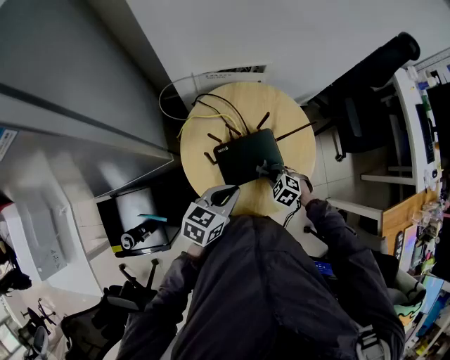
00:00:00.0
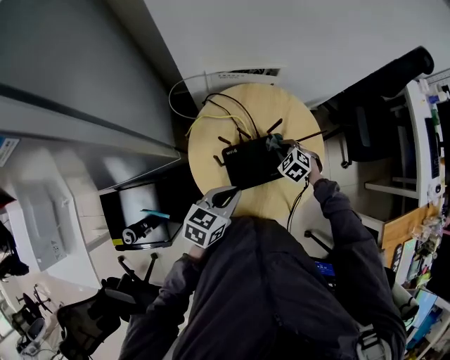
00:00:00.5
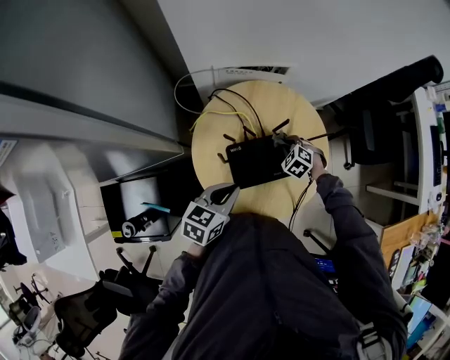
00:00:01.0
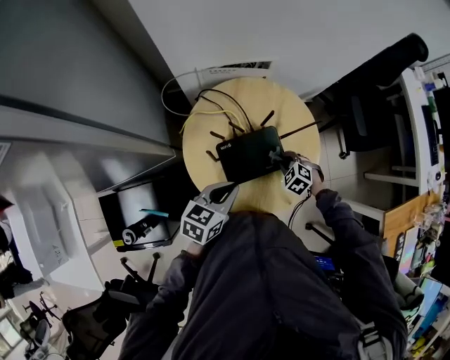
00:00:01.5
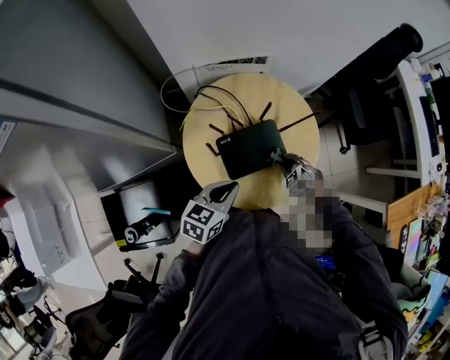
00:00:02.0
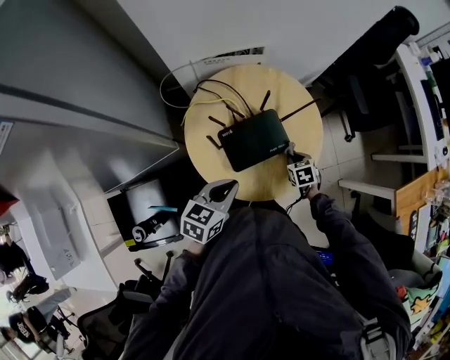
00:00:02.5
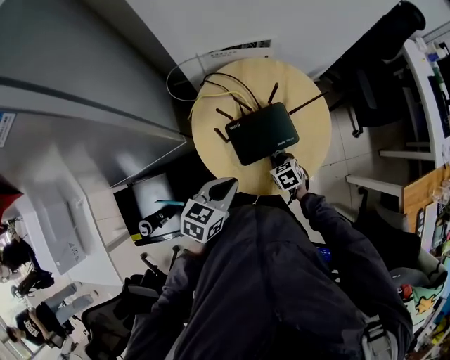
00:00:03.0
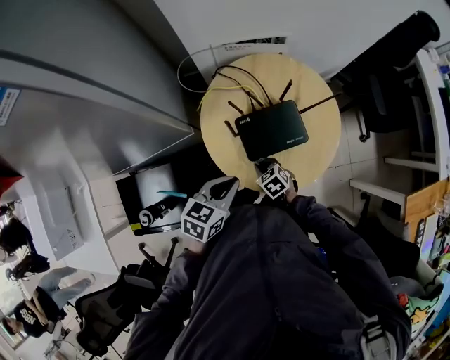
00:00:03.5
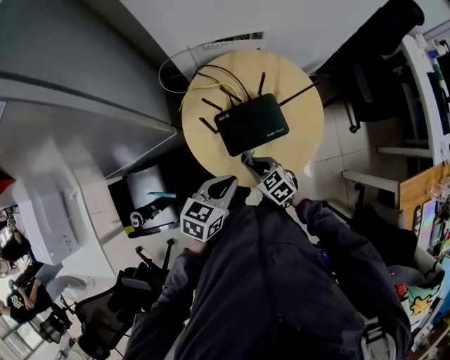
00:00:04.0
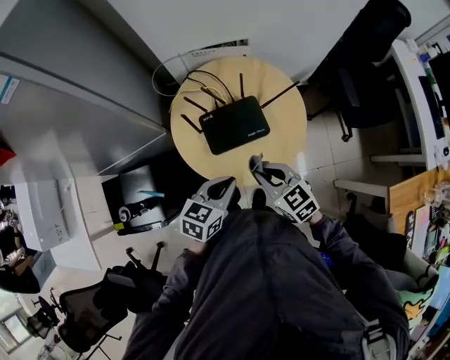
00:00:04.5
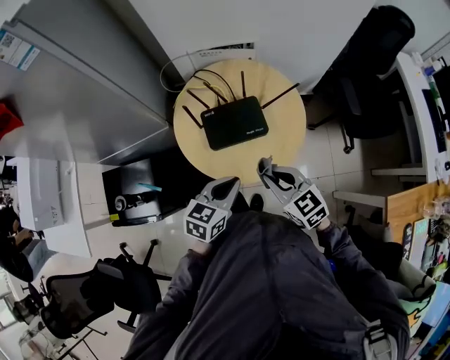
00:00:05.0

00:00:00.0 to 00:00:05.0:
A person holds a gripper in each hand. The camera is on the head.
00:00:00.0 to 00:00:02.5: The right gripper travels to the right by roughly 10 cm, moves roughly 15 cm forward and comes back, and twists approximately 50 degrees clockwise, seen from behind.
00:00:02.5 to 00:00:05.0: The left gripper ends up about 15 cm from where it was, while the right gripper shifts approximately 25 cm upward, and angles its fingers upward, by approximately 40 degrees.

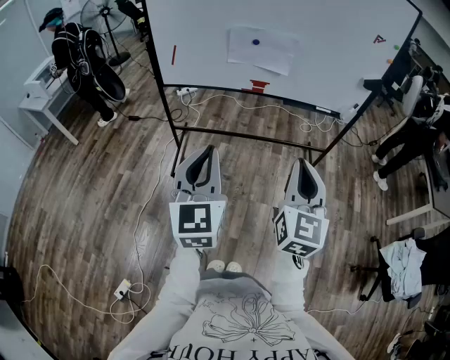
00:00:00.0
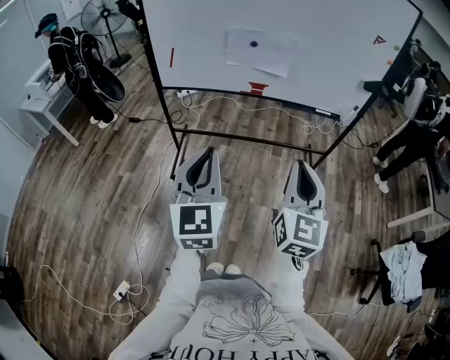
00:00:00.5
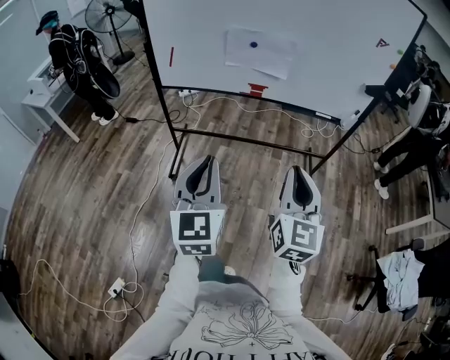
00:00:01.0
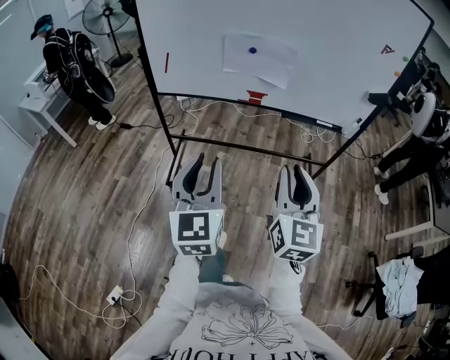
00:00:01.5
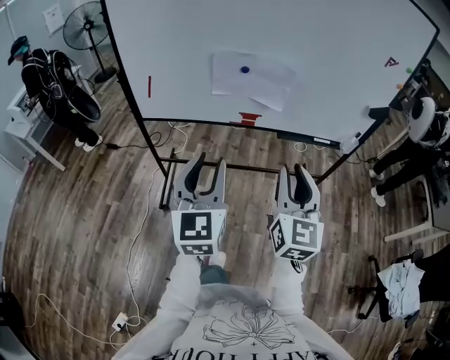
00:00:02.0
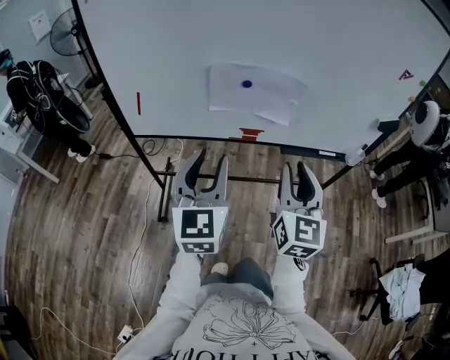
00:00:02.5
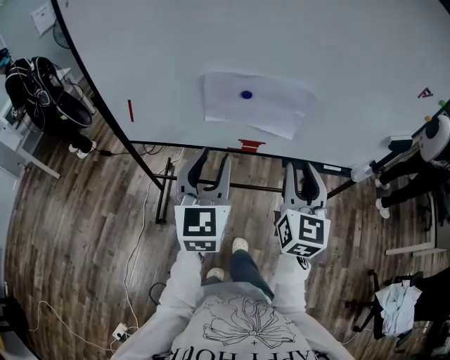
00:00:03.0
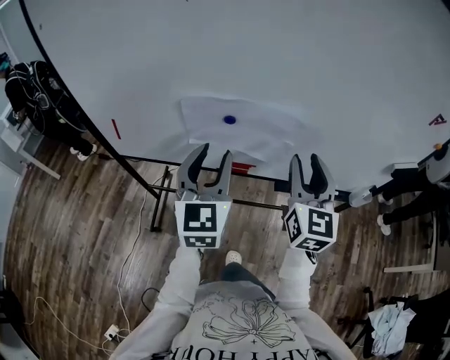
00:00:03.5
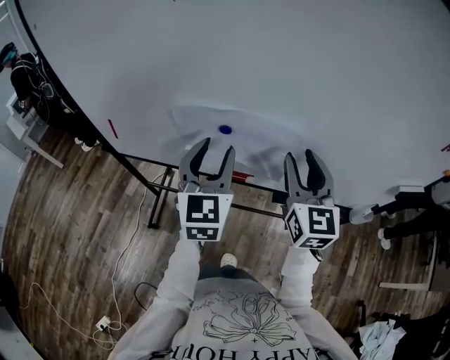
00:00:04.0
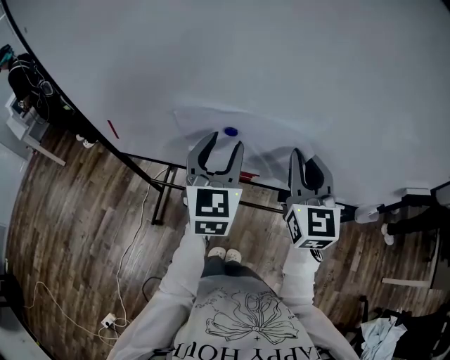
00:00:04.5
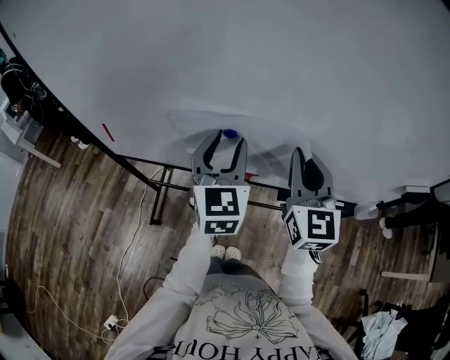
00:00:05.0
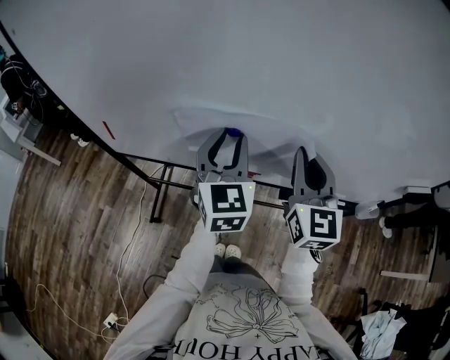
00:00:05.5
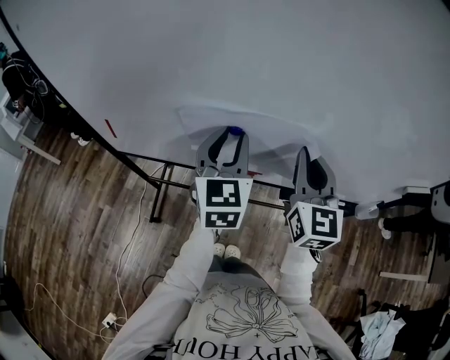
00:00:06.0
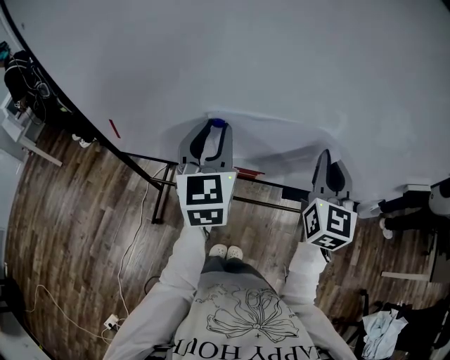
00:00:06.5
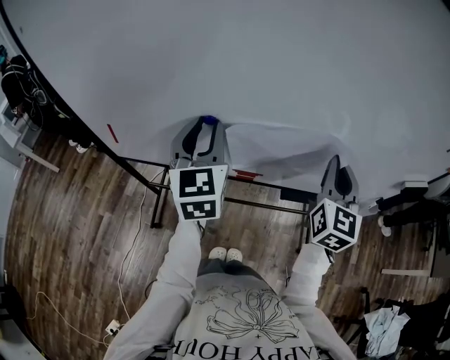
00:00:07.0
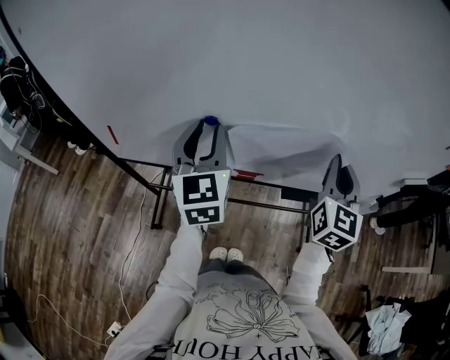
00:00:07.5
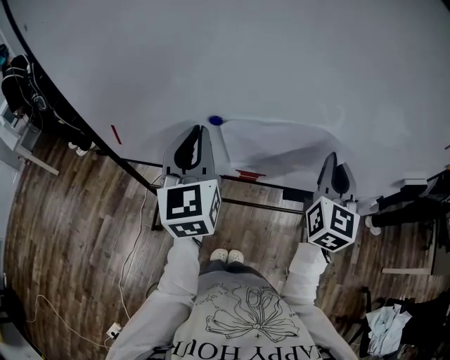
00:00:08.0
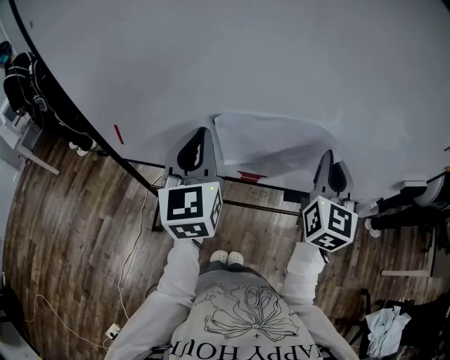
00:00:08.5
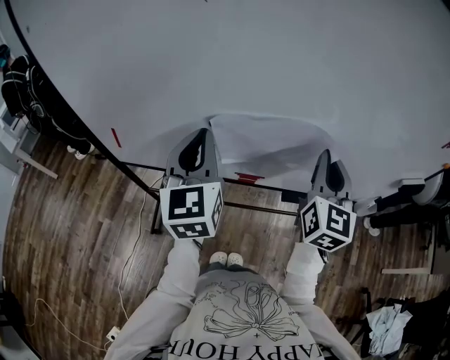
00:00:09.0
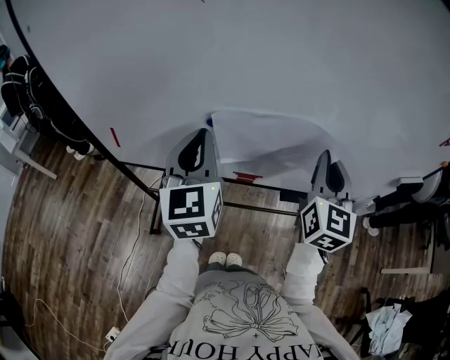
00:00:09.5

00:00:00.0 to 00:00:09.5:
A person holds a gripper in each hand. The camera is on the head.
00:00:00.0 to 00:00:02.0: The grippers both shift forward by approximately 25 cm. The left gripper opens.
00:00:02.0 to 00:00:04.0: Both grippers move forward, about 40 cm.
00:00:04.0 to 00:00:05.5: The right gripper closes up. Meanwhile the left gripper shifts by roughly 5 cm.
00:00:05.5 to 00:00:07.5: The right gripper is displaced to the right by about 10 cm; the left gripper is displaced to the left by some 5 cm.
00:00:07.5 to 00:00:09.5: The left gripper closes up. The right gripper moves approximately 5 cm.

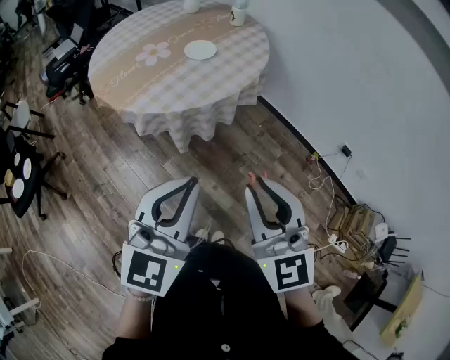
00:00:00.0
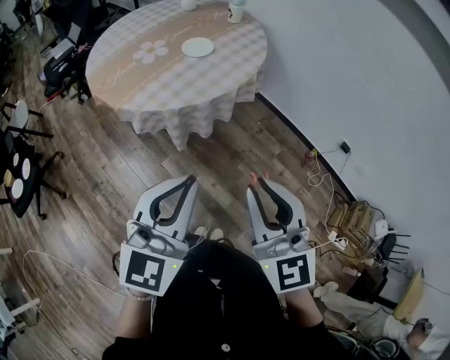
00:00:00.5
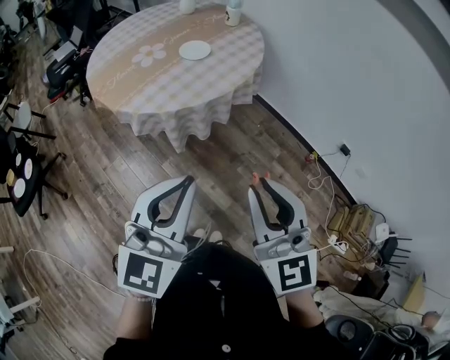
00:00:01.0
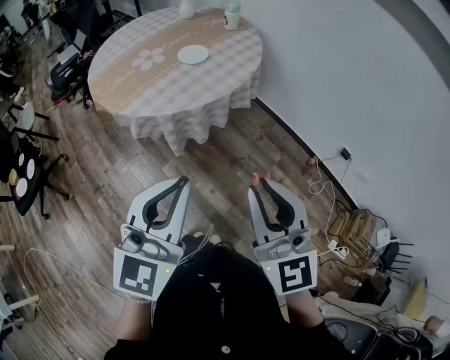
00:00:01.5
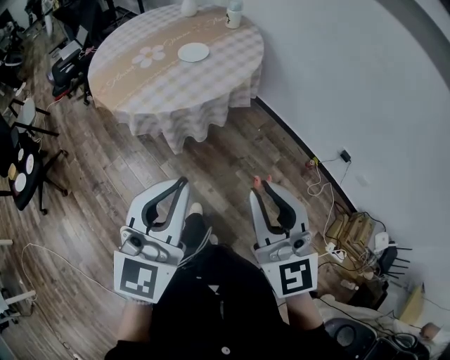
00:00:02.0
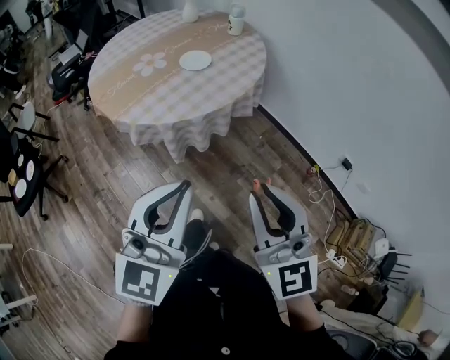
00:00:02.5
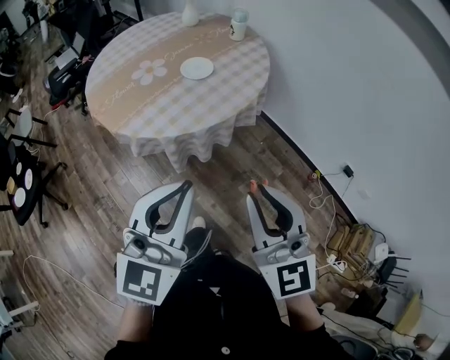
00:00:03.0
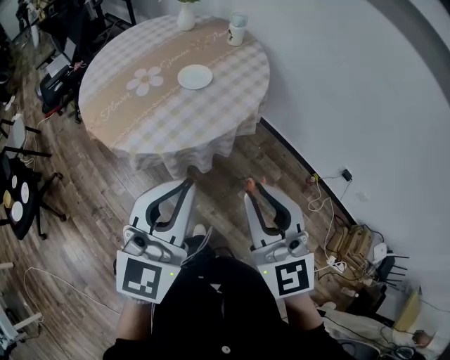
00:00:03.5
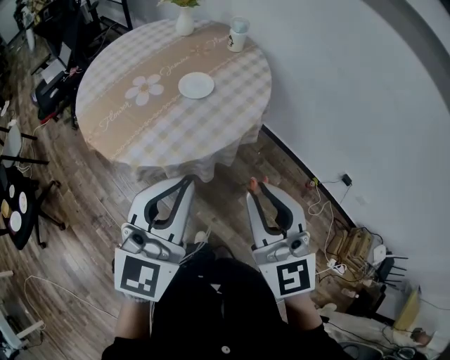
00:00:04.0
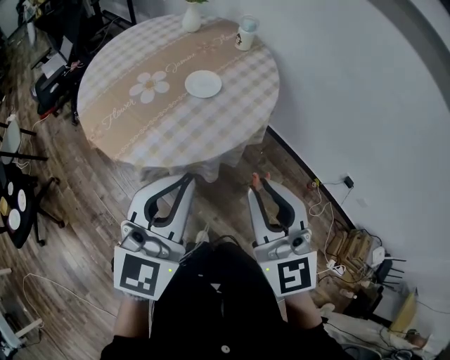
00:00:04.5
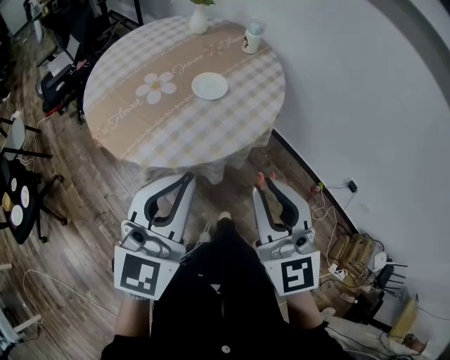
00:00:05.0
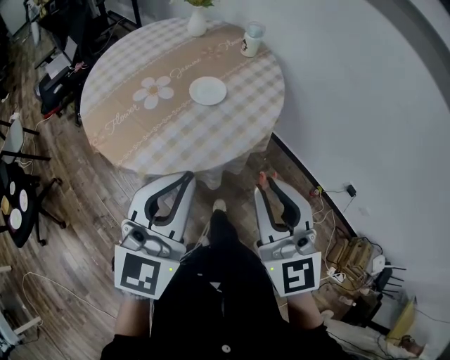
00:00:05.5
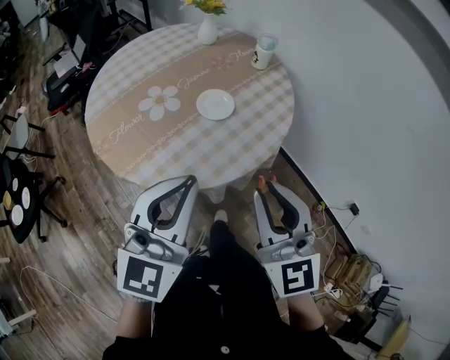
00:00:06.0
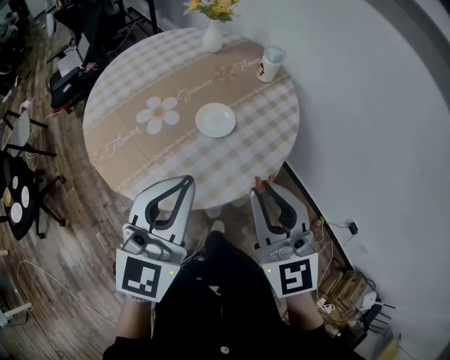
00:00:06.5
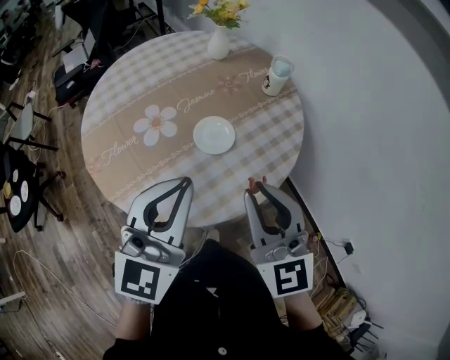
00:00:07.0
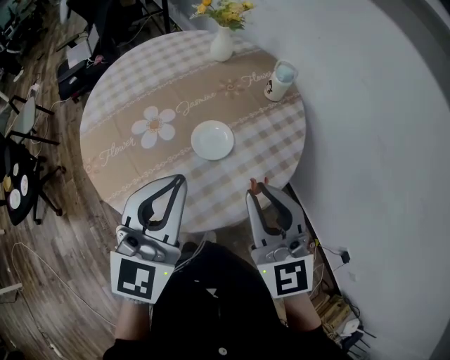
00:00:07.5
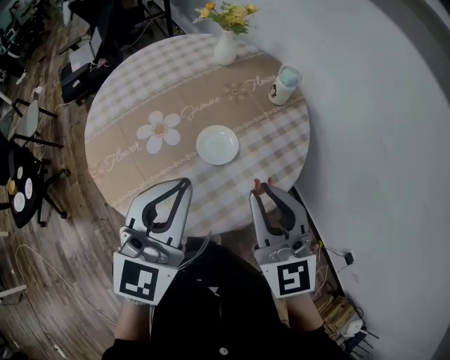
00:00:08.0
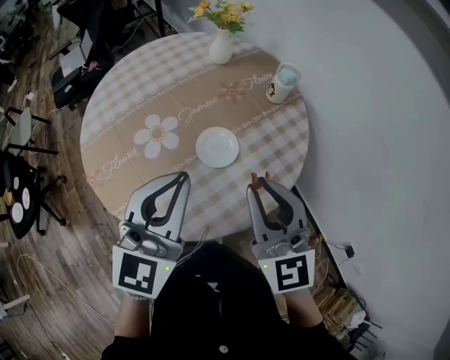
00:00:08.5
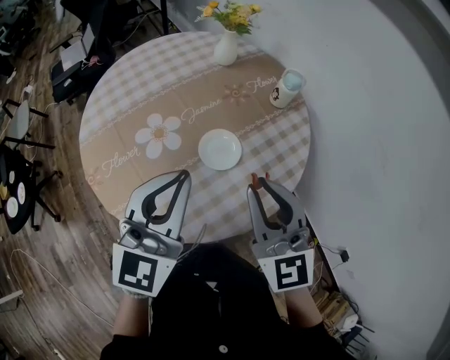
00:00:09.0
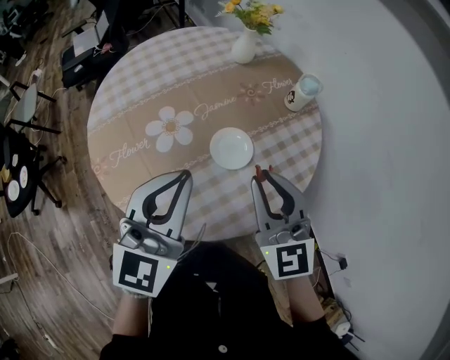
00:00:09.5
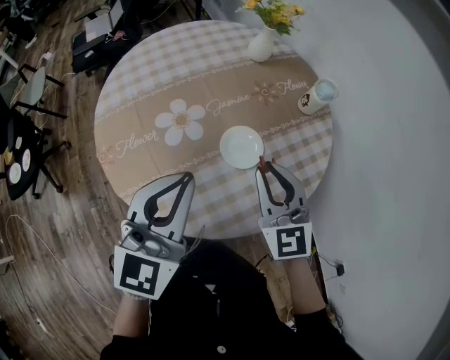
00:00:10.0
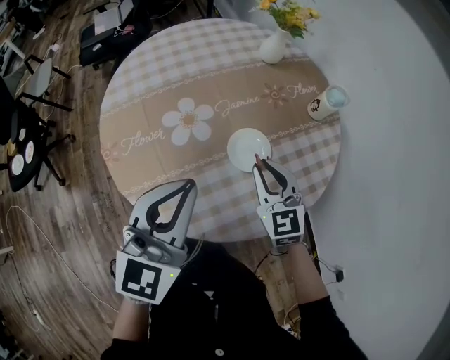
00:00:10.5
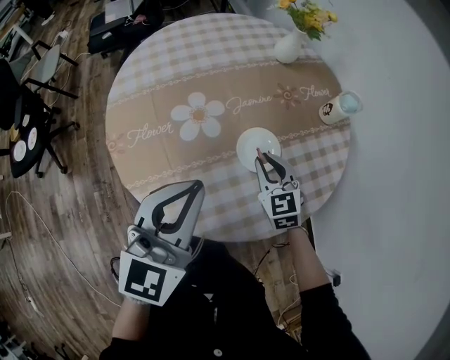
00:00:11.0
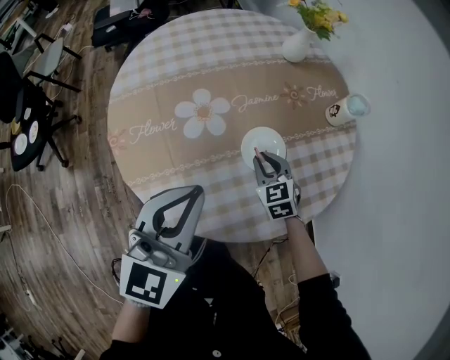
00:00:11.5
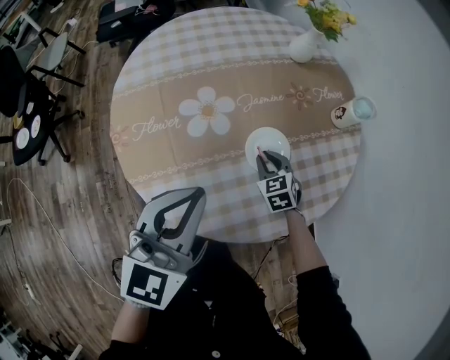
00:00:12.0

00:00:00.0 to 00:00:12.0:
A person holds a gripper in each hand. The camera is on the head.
00:00:00.0 to 00:00:02.0: The grippers both shift to the right by about 5 cm.
00:00:02.0 to 00:00:04.0: Both grippers move forward and to the left, some 20 cm.
00:00:04.0 to 00:00:06.0: The grippers both shift forward by about 10 cm.
00:00:06.0 to 00:00:08.0: Both grippers travel together forward, some 20 cm.
00:00:08.0 to 00:00:10.0: The left gripper goes about 10 cm to the left, while the right gripper is displaced forward, downward and to the left by some 15 cm.
00:00:10.0 to 00:00:12.0: The right gripper travels downward by about 25 cm, and tilts its fingers some 30 degrees downward. The left gripper ends up about 5 cm from where it was.
